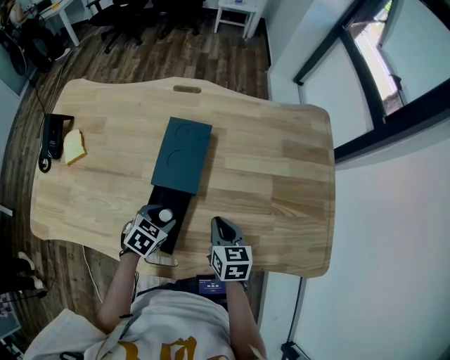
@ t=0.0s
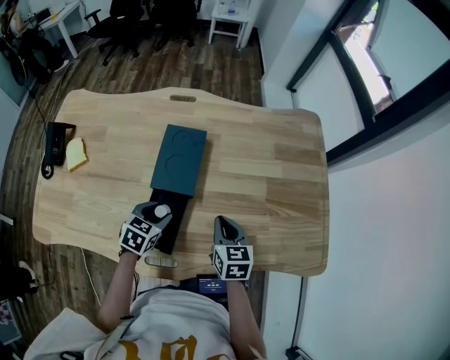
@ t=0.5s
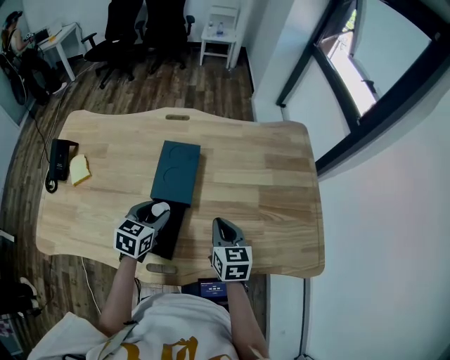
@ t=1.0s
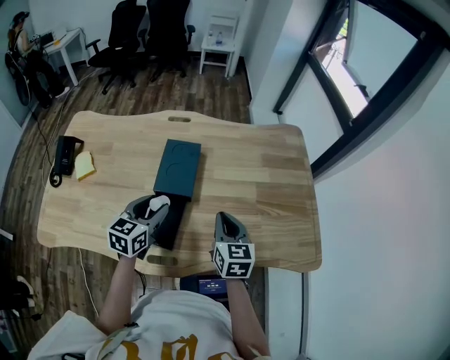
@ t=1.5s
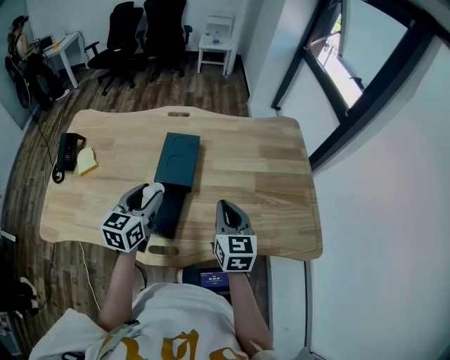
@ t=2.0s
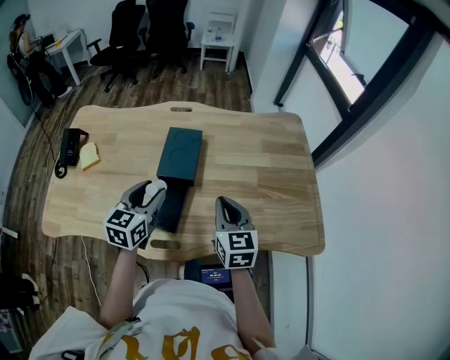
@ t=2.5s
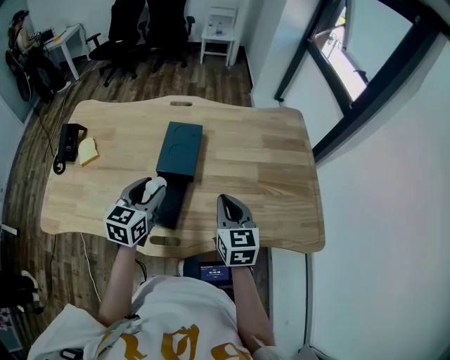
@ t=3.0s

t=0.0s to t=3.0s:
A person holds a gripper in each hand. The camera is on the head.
t=0.0s to t=1.5s: The left gripper heads upward, covering about 20 cm, and tilts its fingers roughly 30 degrees upward. Meanwhile the right gripper goes about 10 cm upward.
t=1.5s to t=3.0s: The grippers stay close to where they were, moving slightly.

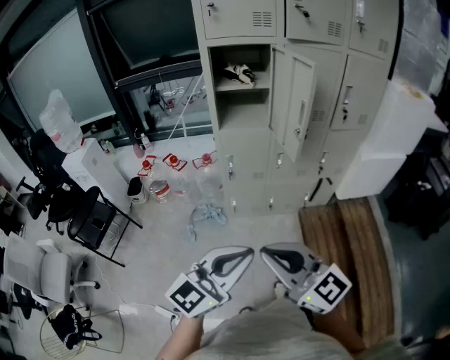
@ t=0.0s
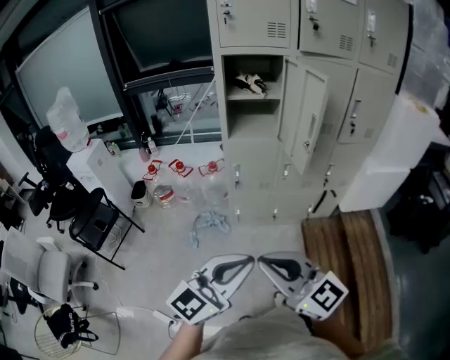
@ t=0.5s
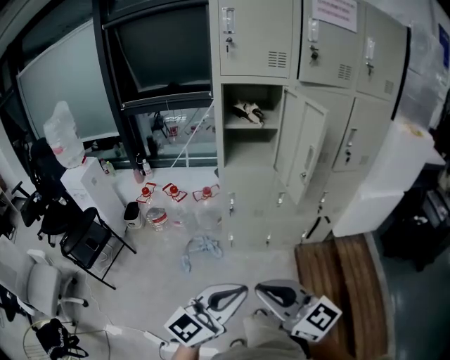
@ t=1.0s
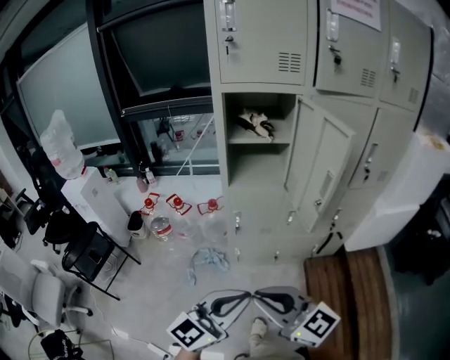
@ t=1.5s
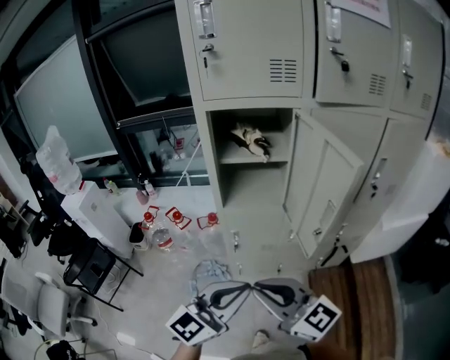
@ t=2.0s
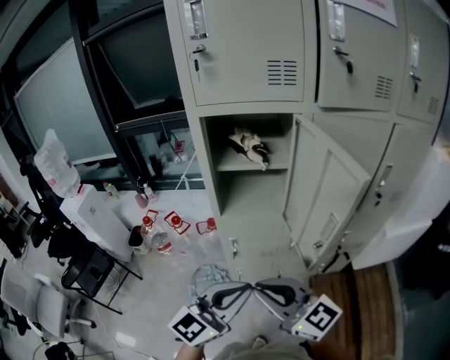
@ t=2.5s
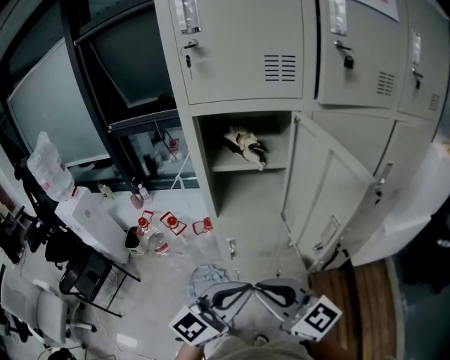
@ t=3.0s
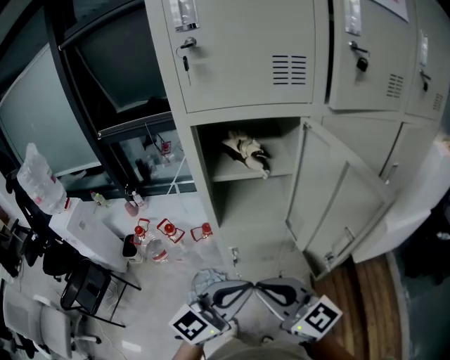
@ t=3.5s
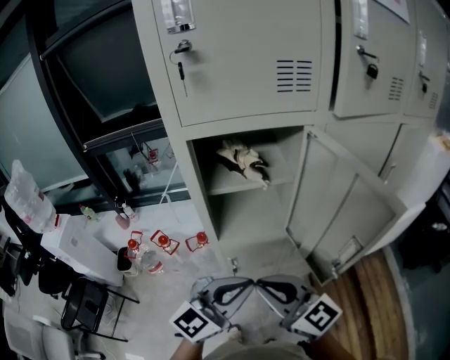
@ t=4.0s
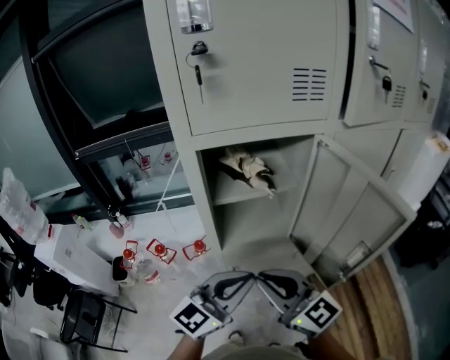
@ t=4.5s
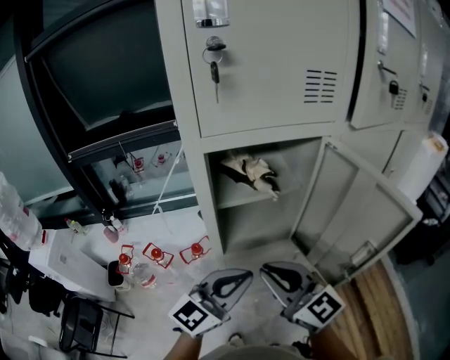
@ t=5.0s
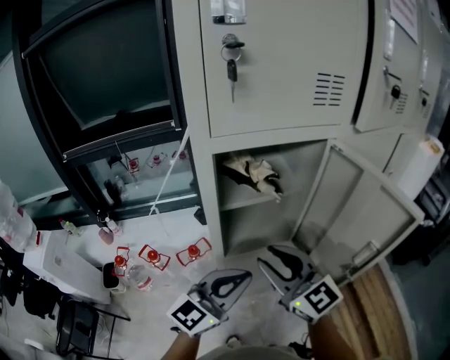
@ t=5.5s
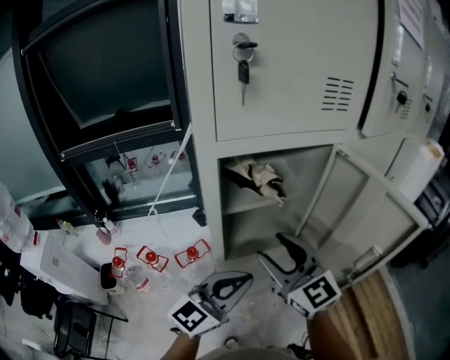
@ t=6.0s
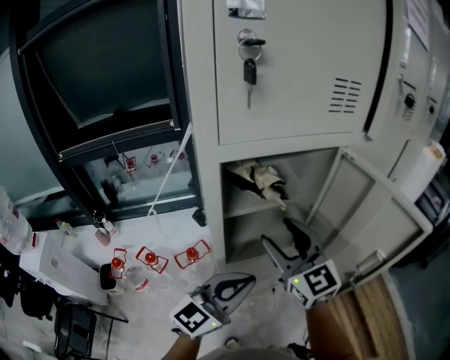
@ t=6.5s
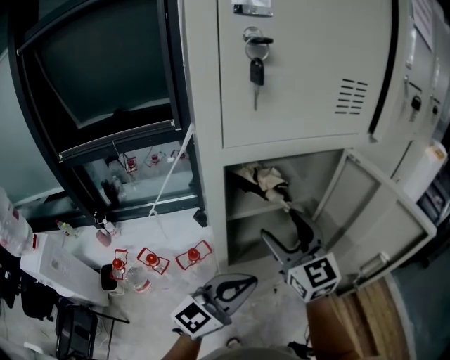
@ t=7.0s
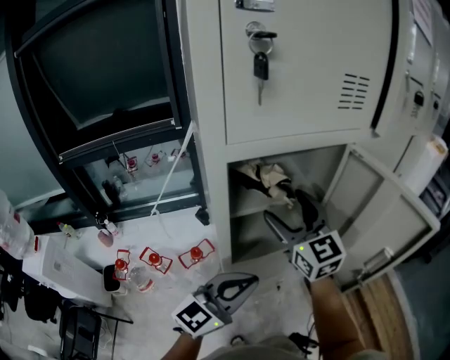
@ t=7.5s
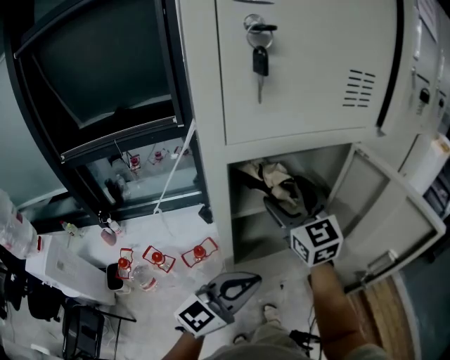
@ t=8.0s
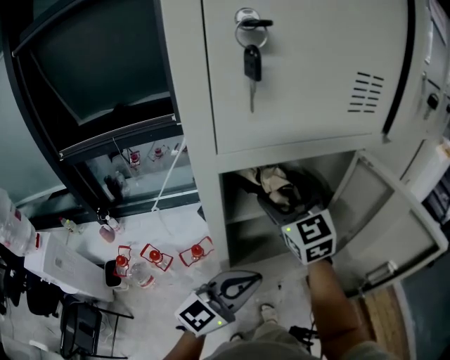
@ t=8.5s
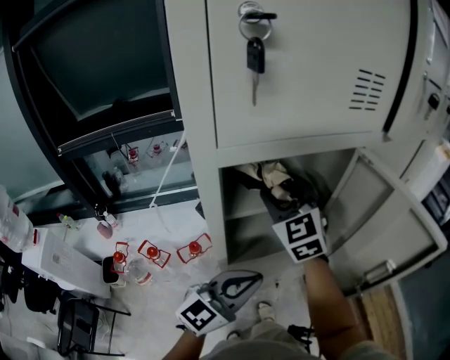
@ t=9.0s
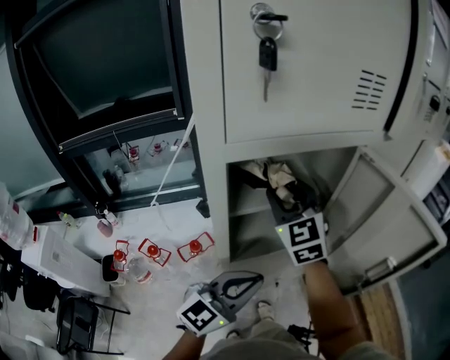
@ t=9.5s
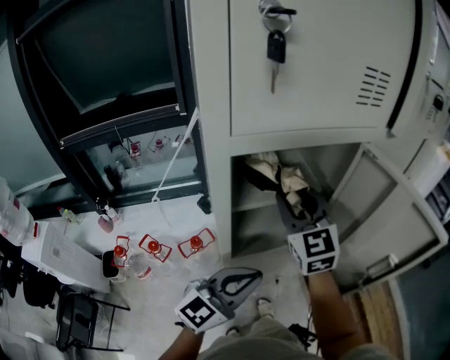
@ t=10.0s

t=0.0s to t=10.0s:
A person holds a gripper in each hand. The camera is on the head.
t=0.0s to t=2.0s: Both grippers travel together forward, some 25 cm.
t=2.0s to t=4.0s: The two grippers go roughly 15 cm forward.
t=4.0s to t=6.0s: The left gripper heads forward and to the left, covering roughly 10 cm. The right gripper moves forward, about 15 cm, swivels about 30 degrees, and opens its fingers.
t=6.0s to t=8.0s: The right gripper is displaced forward by approximately 15 cm, and opens up.
t=8.0s to t=10.0s: The right gripper closes up.

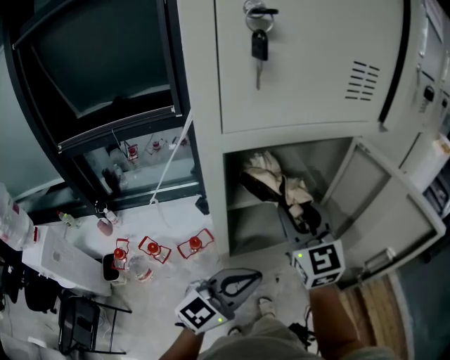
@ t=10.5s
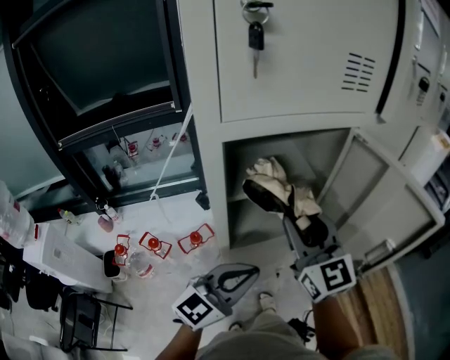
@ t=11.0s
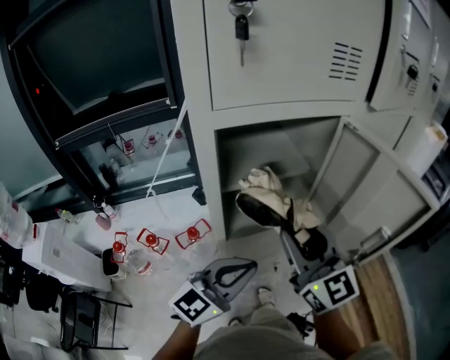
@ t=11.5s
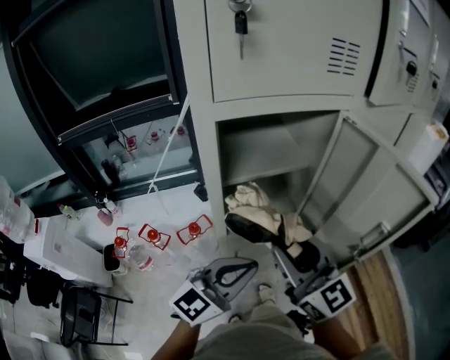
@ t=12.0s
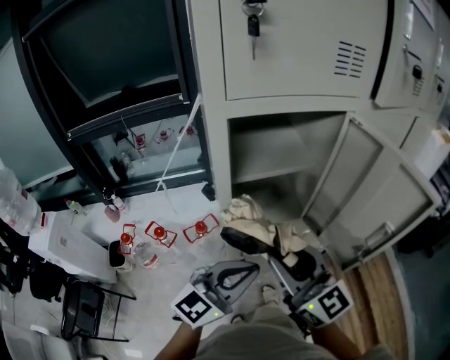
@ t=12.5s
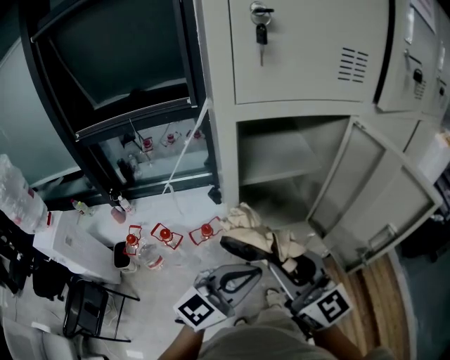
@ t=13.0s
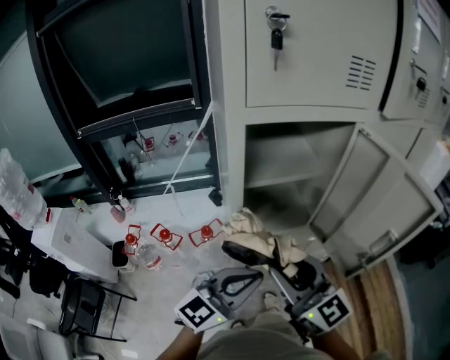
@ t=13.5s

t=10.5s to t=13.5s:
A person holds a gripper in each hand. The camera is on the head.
t=10.5s to t=12.0s: The right gripper shifts about 15 cm backward, and rotates roughly 20 degrees.
t=12.0s to t=13.5s: The right gripper changes place by some 5 cm.

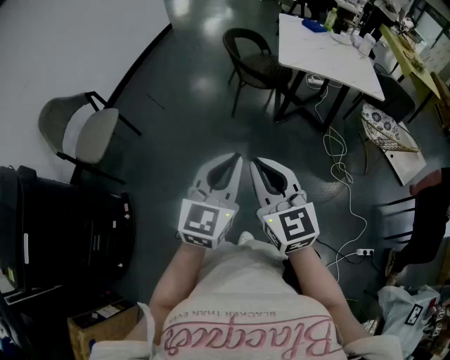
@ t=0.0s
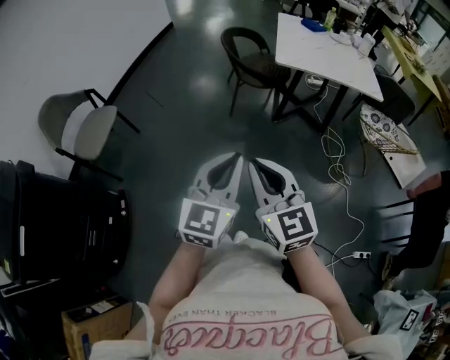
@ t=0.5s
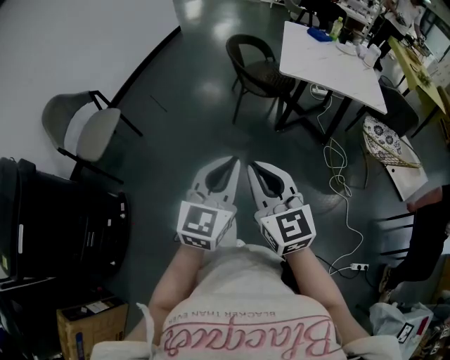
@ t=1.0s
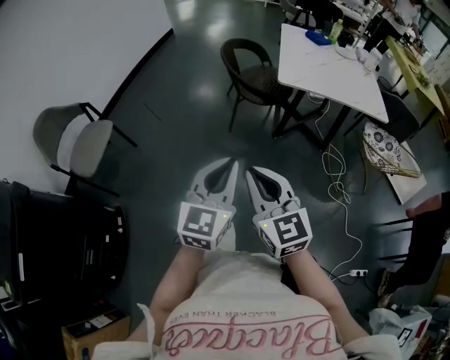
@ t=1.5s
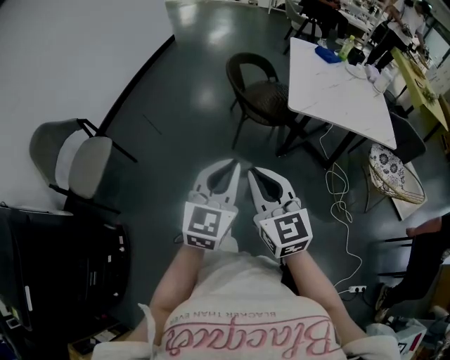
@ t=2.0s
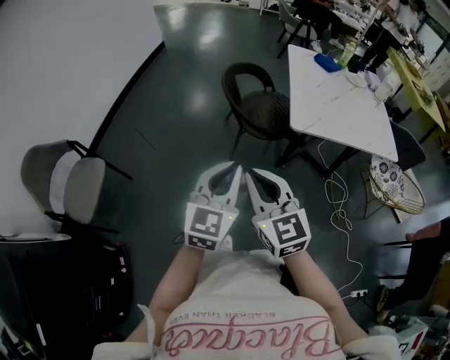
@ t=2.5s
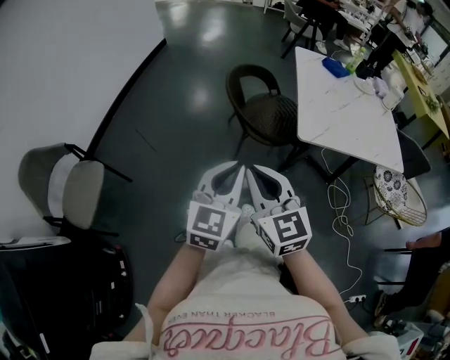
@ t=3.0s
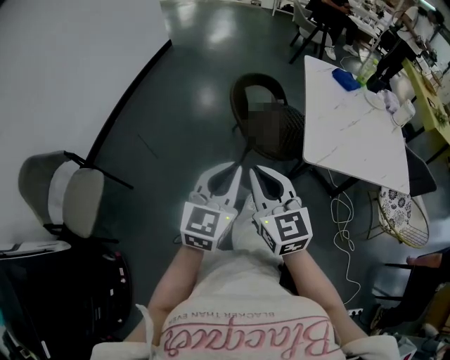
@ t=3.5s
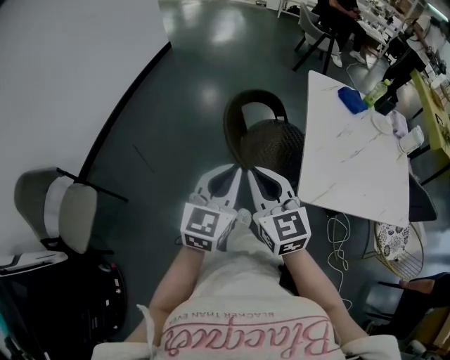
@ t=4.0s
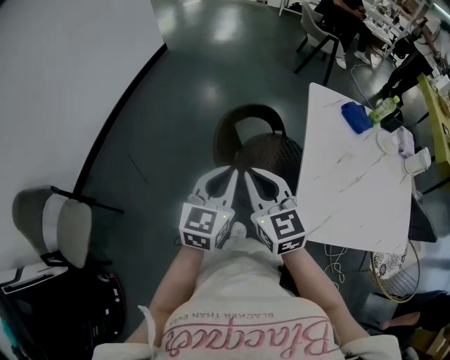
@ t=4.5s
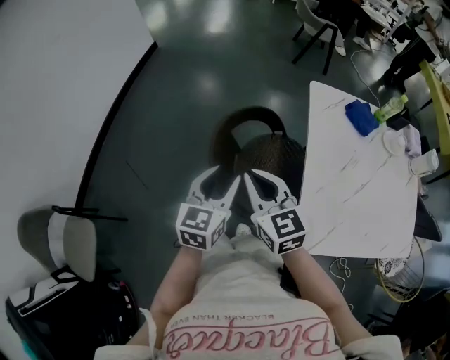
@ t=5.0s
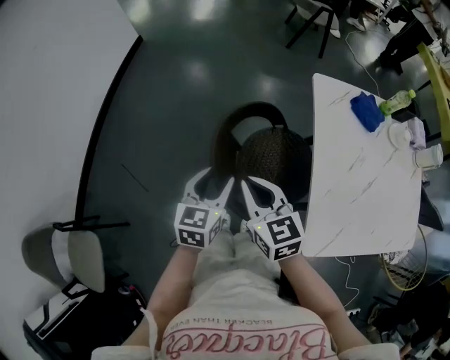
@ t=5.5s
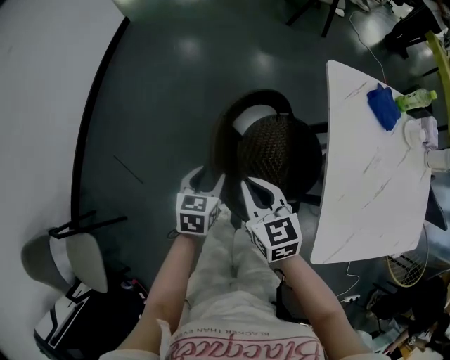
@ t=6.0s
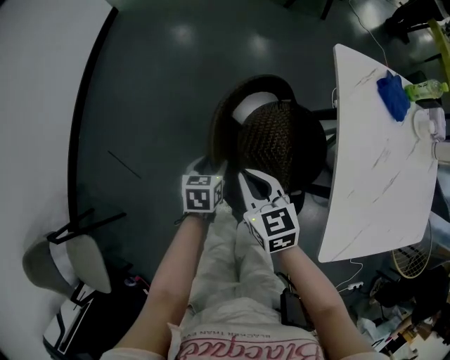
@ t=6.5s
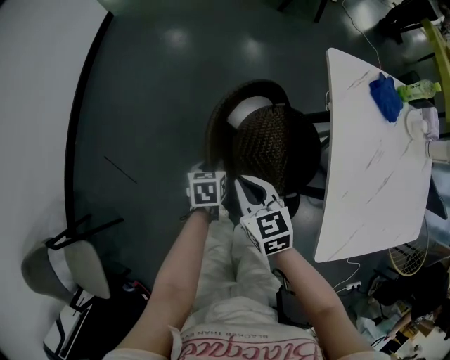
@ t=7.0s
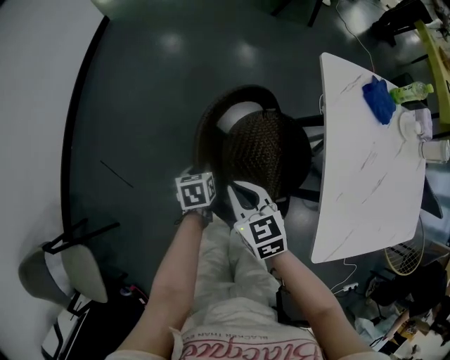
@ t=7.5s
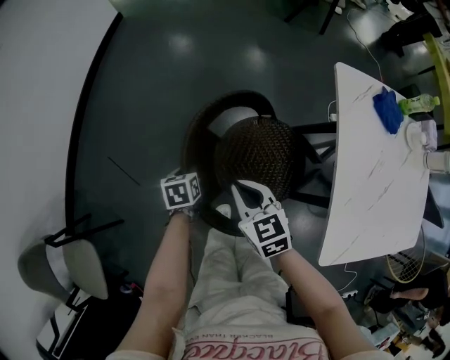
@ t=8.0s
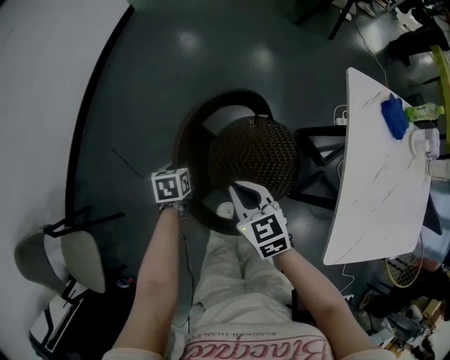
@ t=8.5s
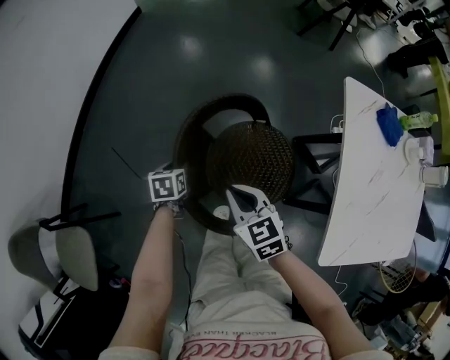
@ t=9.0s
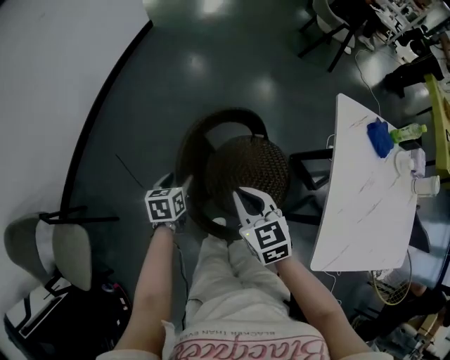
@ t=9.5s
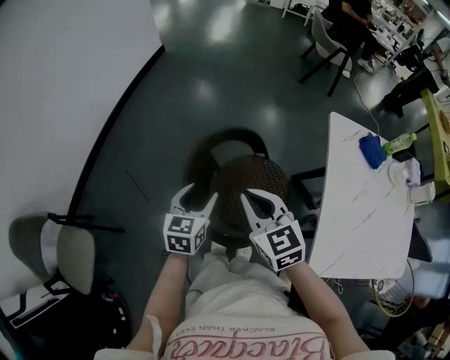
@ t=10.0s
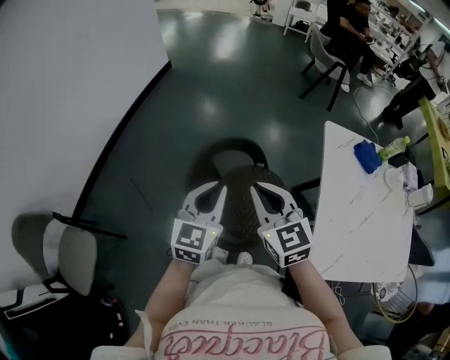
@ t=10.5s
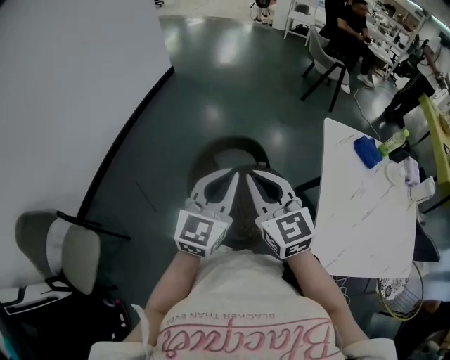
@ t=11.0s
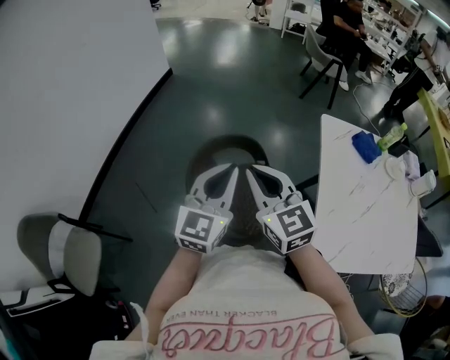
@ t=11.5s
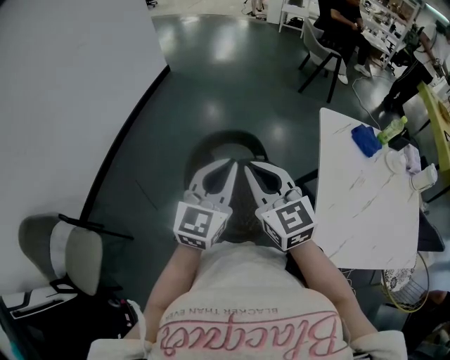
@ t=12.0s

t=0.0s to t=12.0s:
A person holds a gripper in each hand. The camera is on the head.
t=0.0s to t=2.0s: The two grippers go roughly 25 cm forward.
t=2.0s to t=4.0s: Both grippers are carried forward, approximately 40 cm.
t=4.0s to t=6.0s: Both grippers move forward and downward, about 40 cm. The right gripper changes its angle by some 20 degrees, while the left gripper points its fingers about 30 degrees further downward, and opens.
t=6.0s to t=8.0s: The right gripper shifts approximately 10 cm to the left and downward; the left gripper travels downward and to the left by approximately 15 cm, swivels approximately 20 degrees, and closes its fingers.
t=8.0s to t=10.0s: The left gripper heads upward and backward, covering about 25 cm, tips its fingers upward by some 30 degrees, and opens, while the right gripper travels upward by approximately 15 cm.
t=10.0s to t=12.0s: The right gripper travels upward by roughly 10 cm. Meanwhile the left gripper shifts roughly 20 cm upward and to the right, rotates some 30 degrees, and closes up.
